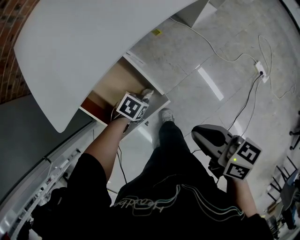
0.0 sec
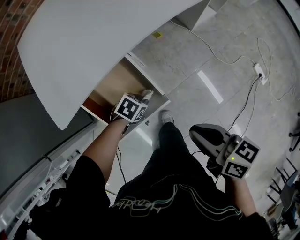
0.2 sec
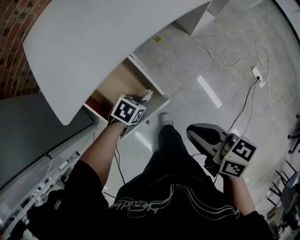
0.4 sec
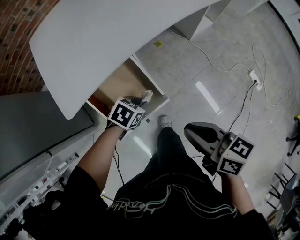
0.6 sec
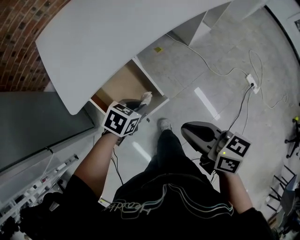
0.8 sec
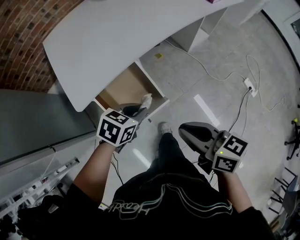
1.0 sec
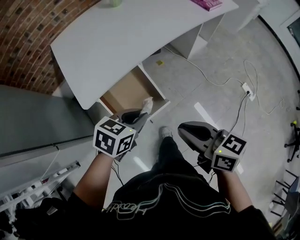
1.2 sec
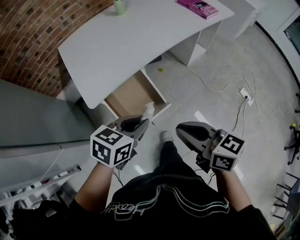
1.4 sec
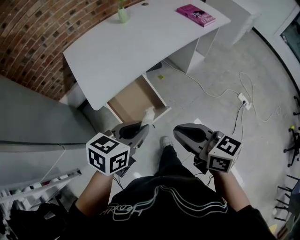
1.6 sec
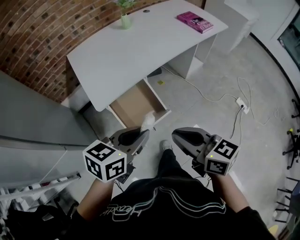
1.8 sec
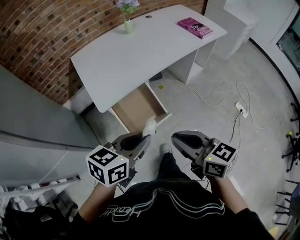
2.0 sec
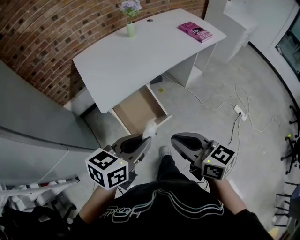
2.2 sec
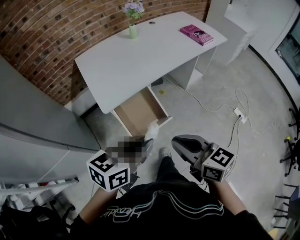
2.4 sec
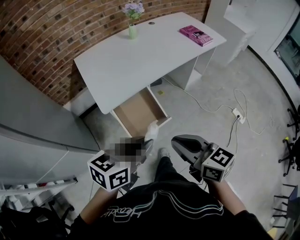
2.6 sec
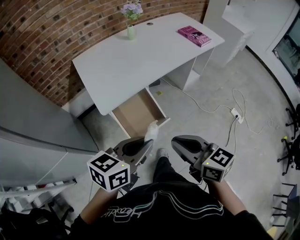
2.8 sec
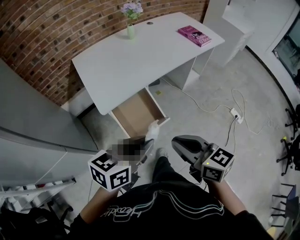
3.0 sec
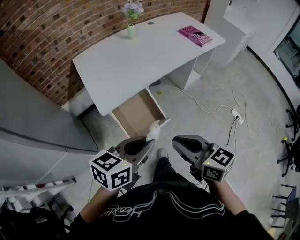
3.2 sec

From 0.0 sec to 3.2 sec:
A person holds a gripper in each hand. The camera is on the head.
From 0.0 sec to 1.6 sec: The right gripper moves upward, some 25 cm, and rotates some 30 degrees. The left gripper travels upward by approximately 50 cm, and tilts its fingers about 30 degrees upward.
From 1.6 sec to 3.2 sec: The right gripper moves backward, about 5 cm. Meanwhile the left gripper travels upward and backward by approximately 10 cm.

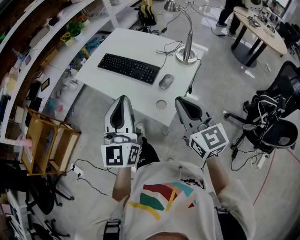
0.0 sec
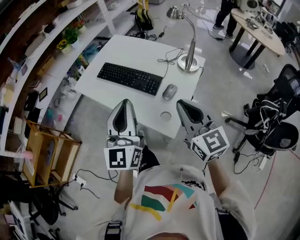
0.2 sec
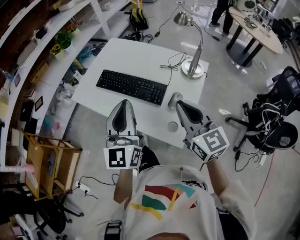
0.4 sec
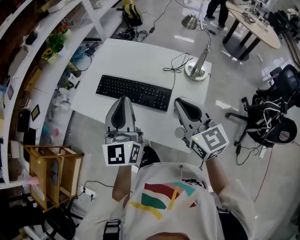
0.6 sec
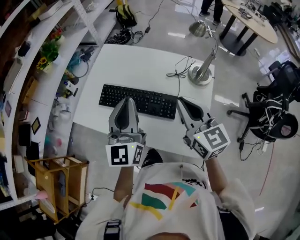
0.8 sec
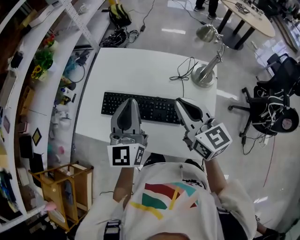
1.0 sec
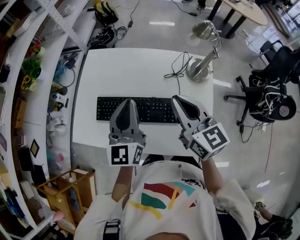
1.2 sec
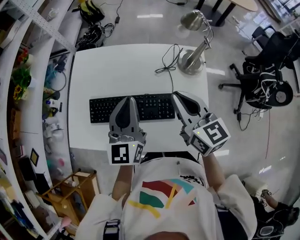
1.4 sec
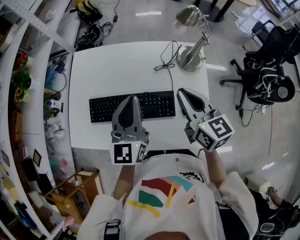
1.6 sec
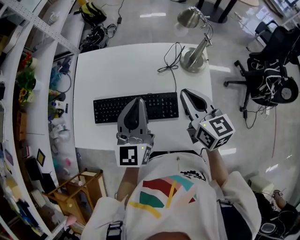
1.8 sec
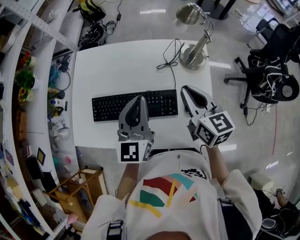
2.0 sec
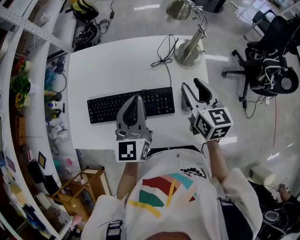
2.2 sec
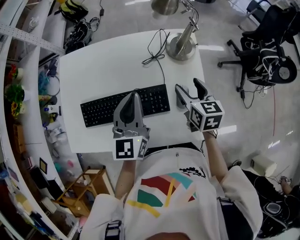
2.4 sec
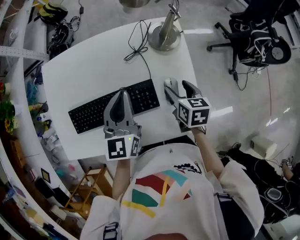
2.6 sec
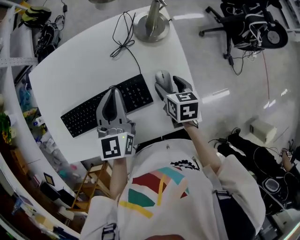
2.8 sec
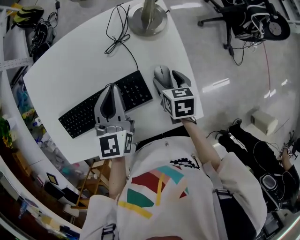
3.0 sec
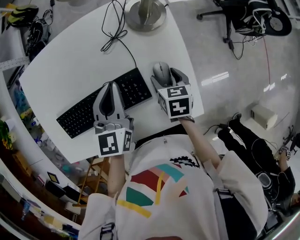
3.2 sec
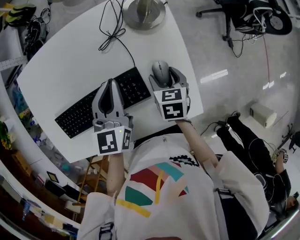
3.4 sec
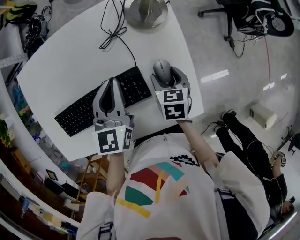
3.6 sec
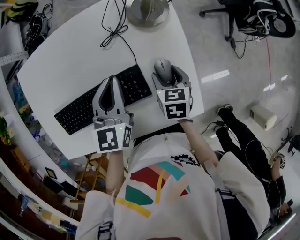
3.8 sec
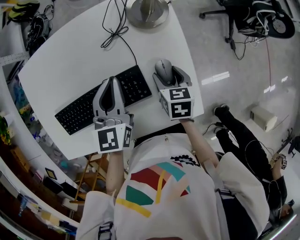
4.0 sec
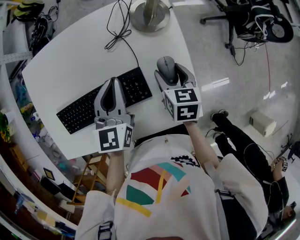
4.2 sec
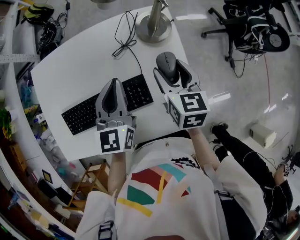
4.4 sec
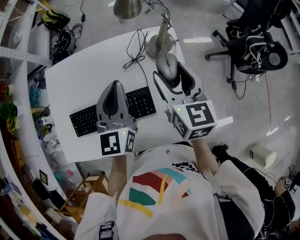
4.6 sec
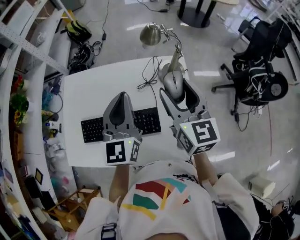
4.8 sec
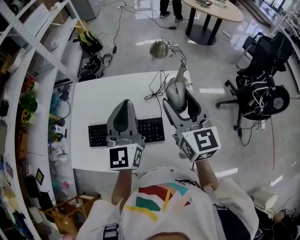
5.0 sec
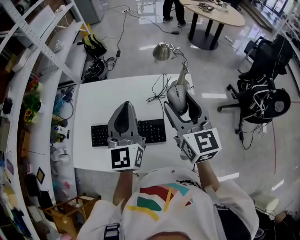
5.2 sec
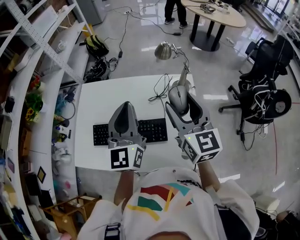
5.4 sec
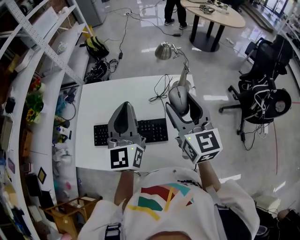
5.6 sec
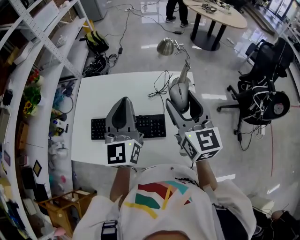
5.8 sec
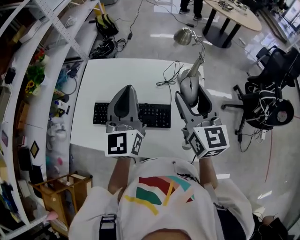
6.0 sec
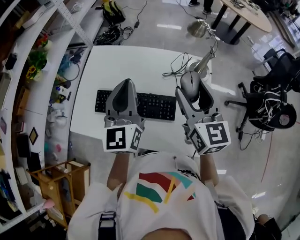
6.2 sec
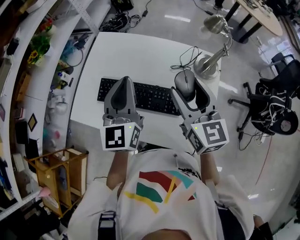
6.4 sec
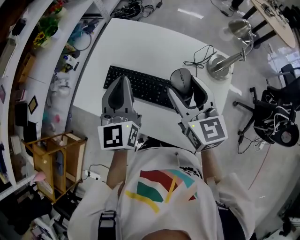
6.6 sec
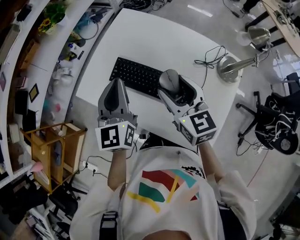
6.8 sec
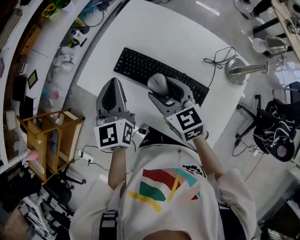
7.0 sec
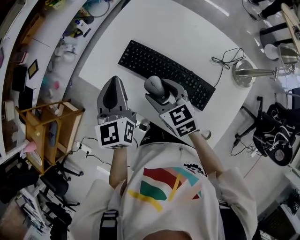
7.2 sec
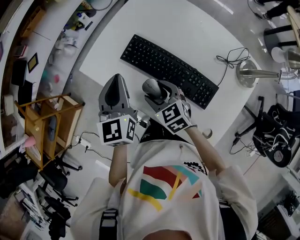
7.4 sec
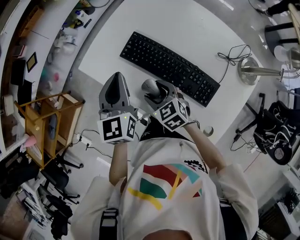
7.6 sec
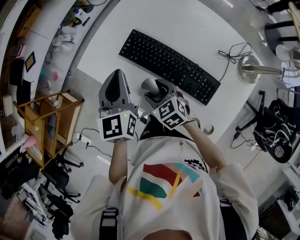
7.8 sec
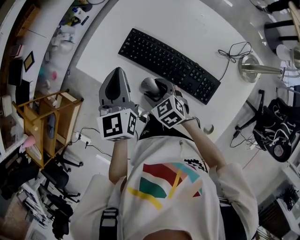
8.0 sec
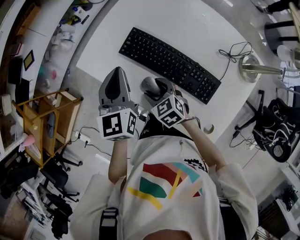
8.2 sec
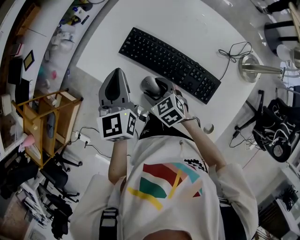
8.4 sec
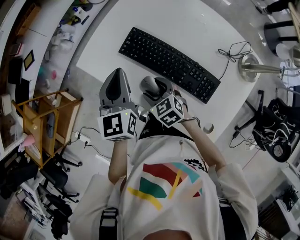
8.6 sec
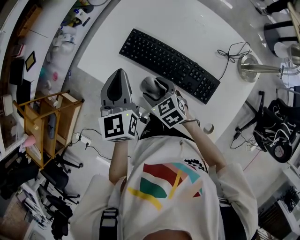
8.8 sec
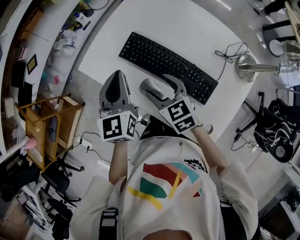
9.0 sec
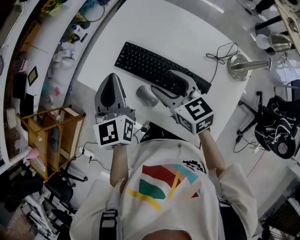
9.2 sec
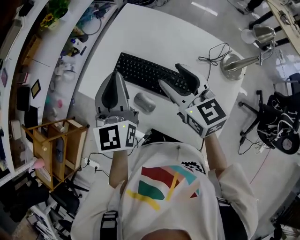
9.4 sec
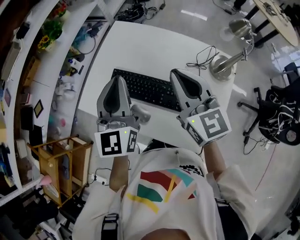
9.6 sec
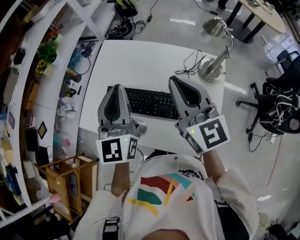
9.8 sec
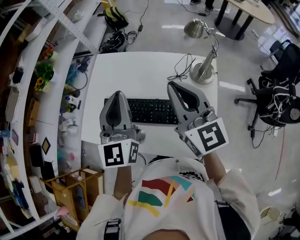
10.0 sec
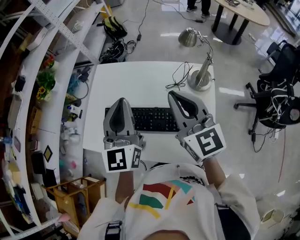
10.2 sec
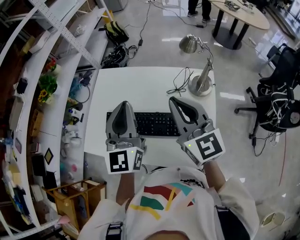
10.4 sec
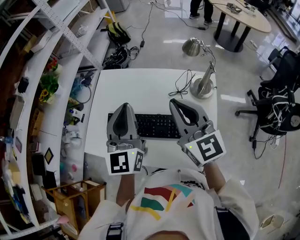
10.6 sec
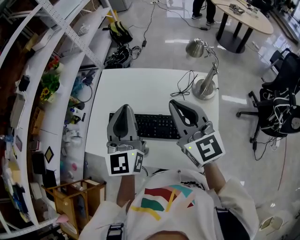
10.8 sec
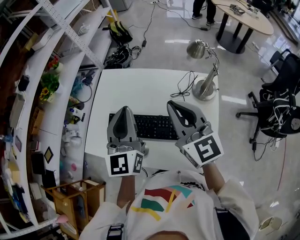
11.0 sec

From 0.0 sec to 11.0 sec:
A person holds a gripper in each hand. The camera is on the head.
From 0.0 sec to 1.6 sec: The right gripper ends up about 35 cm from where it was, and changes its angle by approximately 30 degrees, while the left gripper moves about 40 cm, and rotates some 30 degrees.
From 1.6 sec to 3.2 sec: The right gripper travels downward by roughly 25 cm, tips its fingers downward by about 40 degrees, and opens up. The left gripper travels downward, to the right and forward by roughly 20 cm, and rotates some 30 degrees.
From 3.2 sec to 4.8 sec: The right gripper travels upward by about 30 cm, and tips its fingers upward by some 50 degrees. The left gripper goes approximately 20 cm upward, and swivels about 30 degrees.
From 4.8 sec to 6.2 sec: The right gripper travels to the left by about 5 cm. The left gripper moves to the left and backward, roughly 10 cm.
From 6.2 sec to 7.8 sec: The right gripper travels downward by about 30 cm, and tilts its fingers about 40 degrees downward. Meanwhile the left gripper moves approximately 30 cm, and rotates about 40 degrees.
From 7.8 sec to 9.4 sec: The left gripper goes approximately 15 cm upward and to the right; the right gripper heads upward and to the right, covering roughly 25 cm, and swivels approximately 40 degrees.
From 9.4 sec to 11.0 sec: The grippers both shift to the right and upward by about 15 cm. The left gripper rotates roughly 20 degrees. The right gripper swivels about 30 degrees, and closes up.

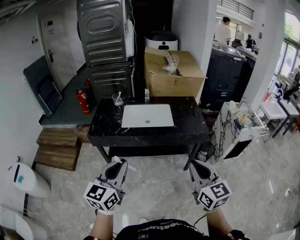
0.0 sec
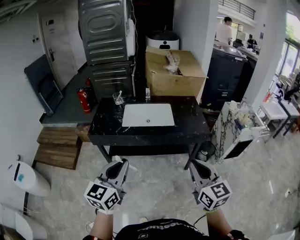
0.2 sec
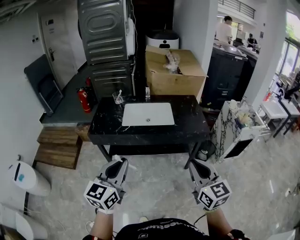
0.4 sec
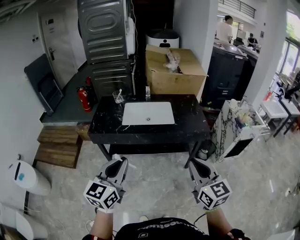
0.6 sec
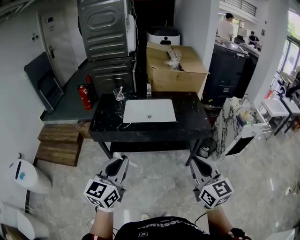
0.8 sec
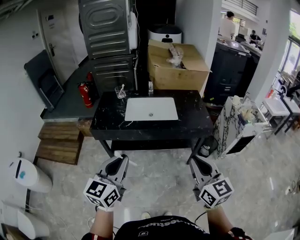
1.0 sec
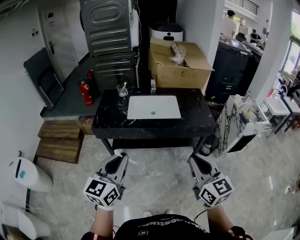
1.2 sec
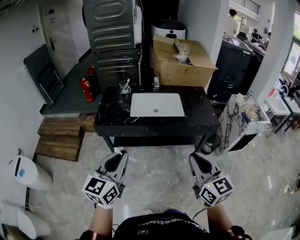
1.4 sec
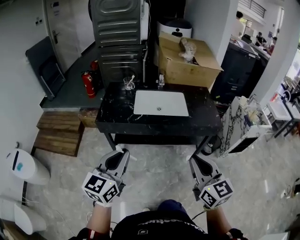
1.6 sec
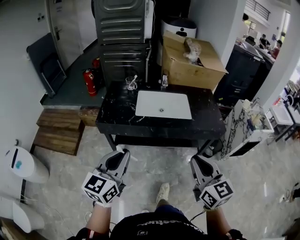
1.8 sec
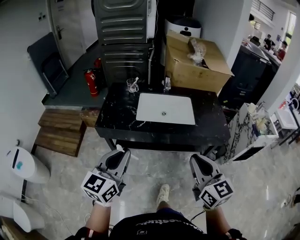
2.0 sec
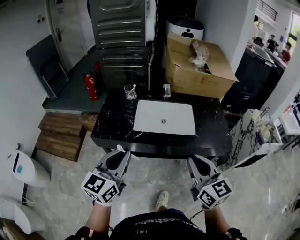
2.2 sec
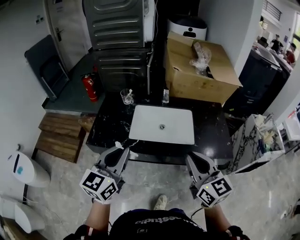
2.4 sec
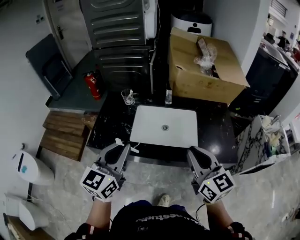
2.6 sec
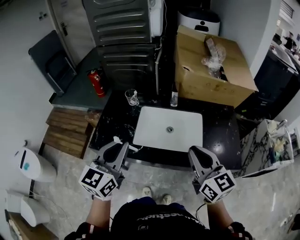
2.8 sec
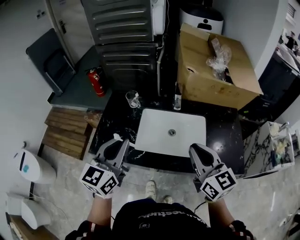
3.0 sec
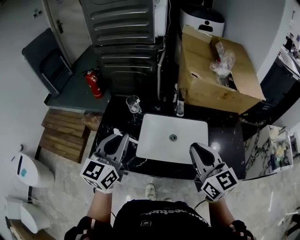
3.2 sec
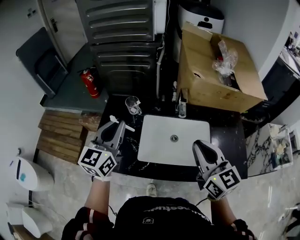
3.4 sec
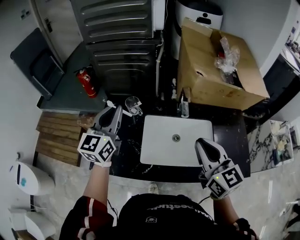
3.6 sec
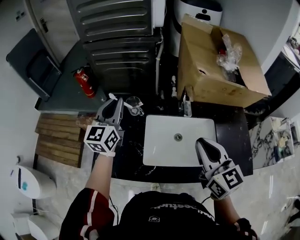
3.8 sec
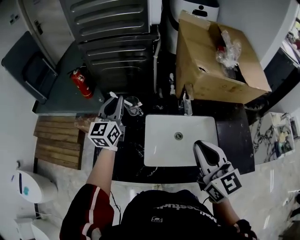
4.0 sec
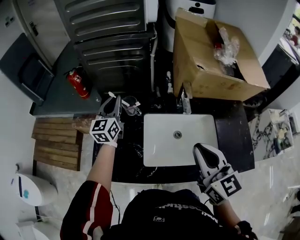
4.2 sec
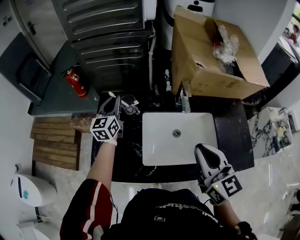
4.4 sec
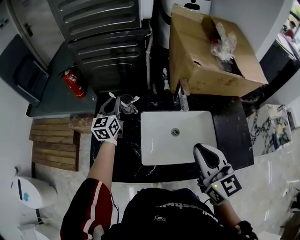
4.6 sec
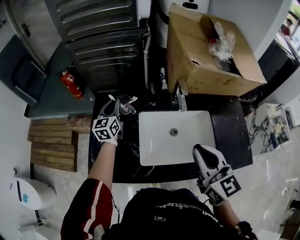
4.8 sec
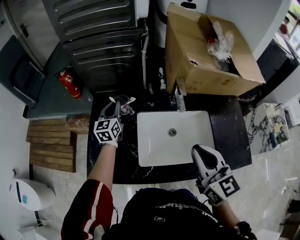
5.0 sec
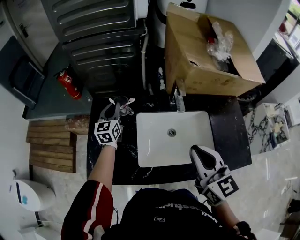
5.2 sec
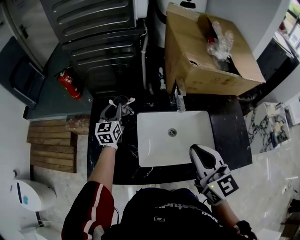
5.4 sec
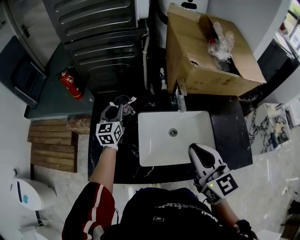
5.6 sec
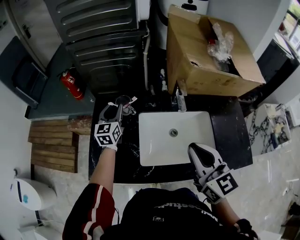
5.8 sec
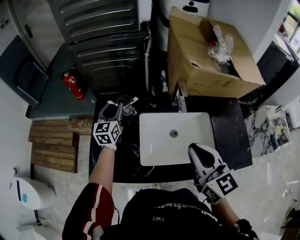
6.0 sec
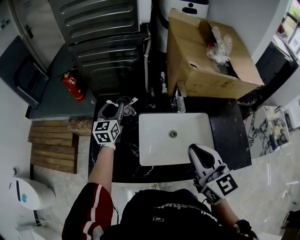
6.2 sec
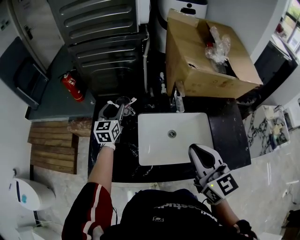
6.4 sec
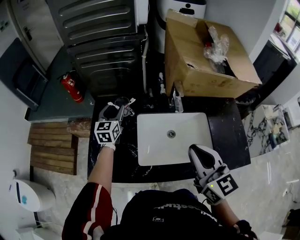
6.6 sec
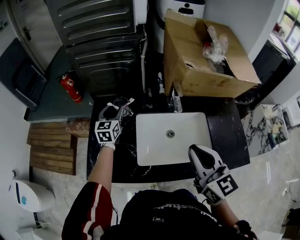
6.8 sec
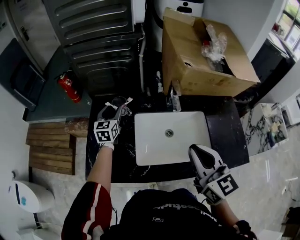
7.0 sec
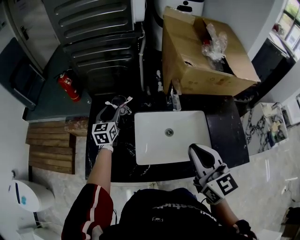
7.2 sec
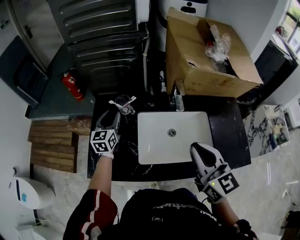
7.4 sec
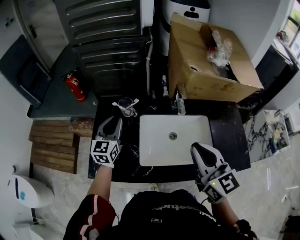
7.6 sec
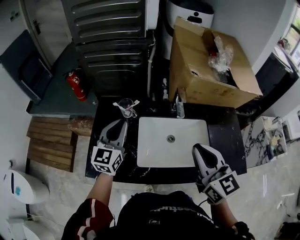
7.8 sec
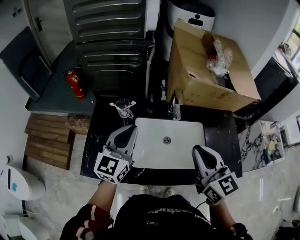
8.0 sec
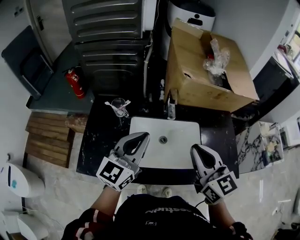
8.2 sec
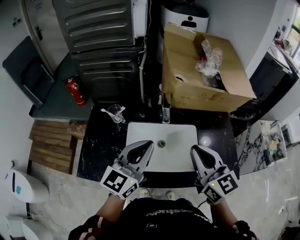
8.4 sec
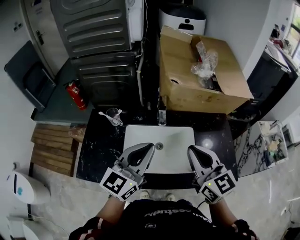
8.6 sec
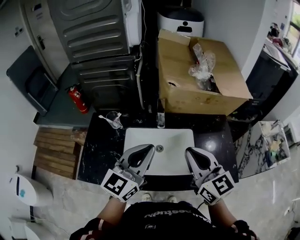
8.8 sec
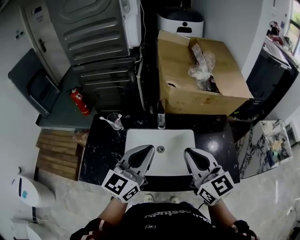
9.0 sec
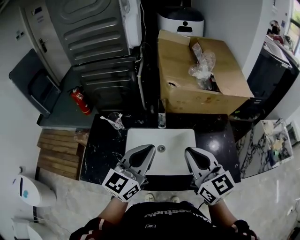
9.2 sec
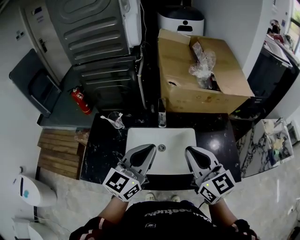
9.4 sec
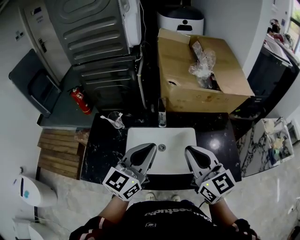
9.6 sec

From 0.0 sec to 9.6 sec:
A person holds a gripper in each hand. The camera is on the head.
From 0.0 sec to 1.6 sec: Both grippers move to the left, approximately 10 cm.
From 1.6 sec to 3.2 sec: The pair of grippers is taken forward, roughly 50 cm.
From 3.2 sec to 4.8 sec: The right gripper heads forward, covering roughly 5 cm; the left gripper moves forward and downward, some 35 cm.
From 4.8 sec to 6.4 sec: The left gripper opens up.
From 6.4 sec to 8.0 sec: The left gripper shifts approximately 25 cm backward, upward and to the right, and closes up.
From 8.0 sec to 9.6 sec: The left gripper goes about 15 cm to the right. Meanwhile the right gripper goes some 10 cm to the right.
